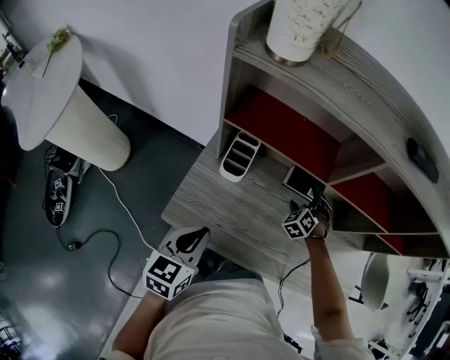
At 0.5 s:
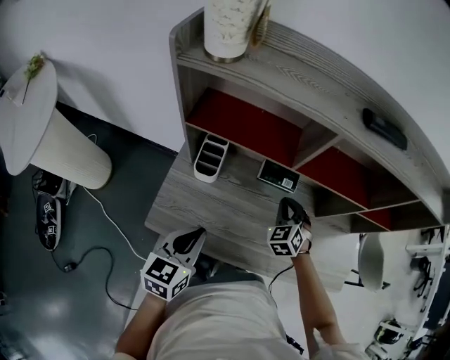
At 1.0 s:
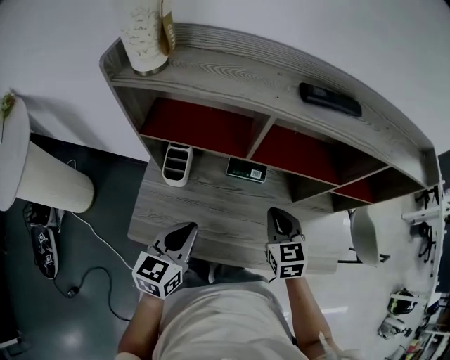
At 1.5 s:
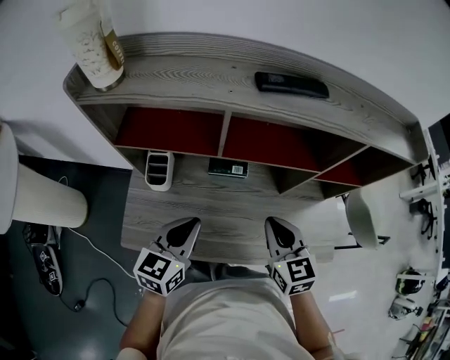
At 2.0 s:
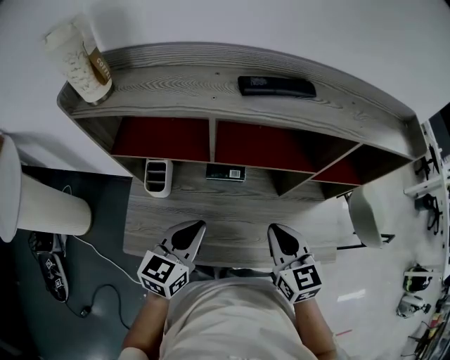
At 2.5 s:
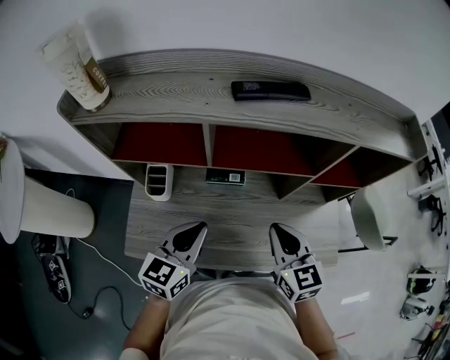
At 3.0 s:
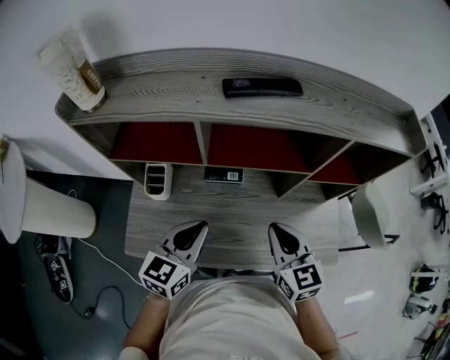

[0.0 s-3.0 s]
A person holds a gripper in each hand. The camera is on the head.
0.0 to 1.5 s: The left gripper is displaced to the right, forward and upward by approximately 20 cm, while the right gripper goes approximately 30 cm upward, backward and to the right, twists roughly 50 degrees clockwise, seen from behind, and closes.
1.5 to 3.0 s: The left gripper heads to the right, covering approximately 5 cm.

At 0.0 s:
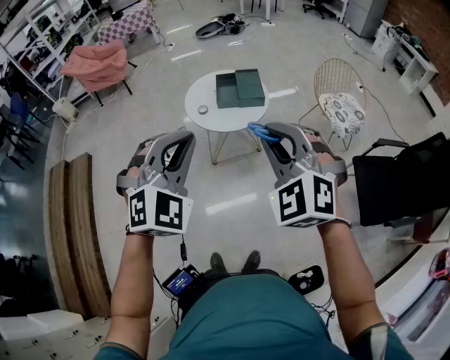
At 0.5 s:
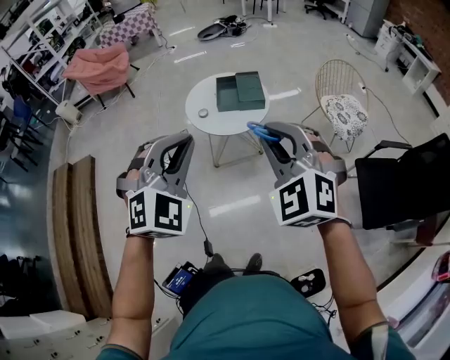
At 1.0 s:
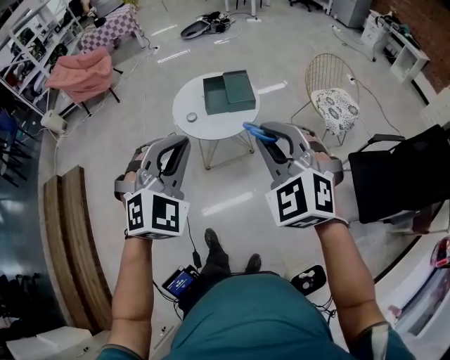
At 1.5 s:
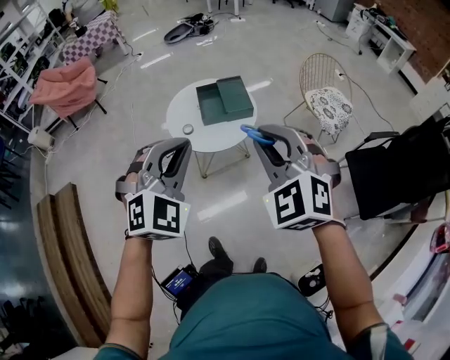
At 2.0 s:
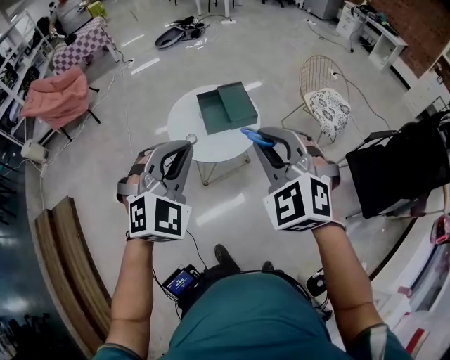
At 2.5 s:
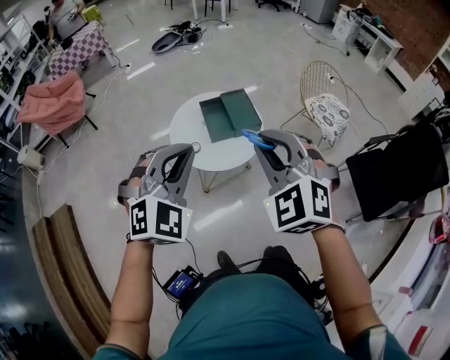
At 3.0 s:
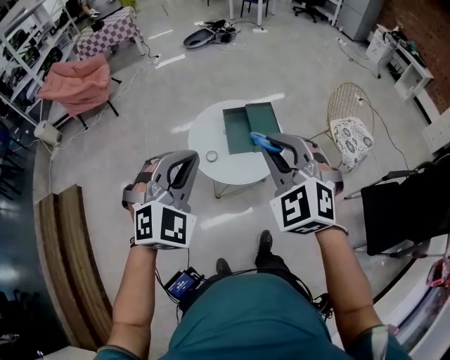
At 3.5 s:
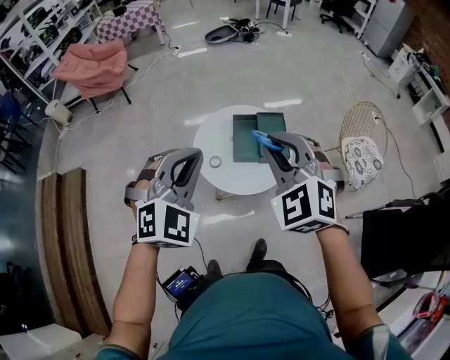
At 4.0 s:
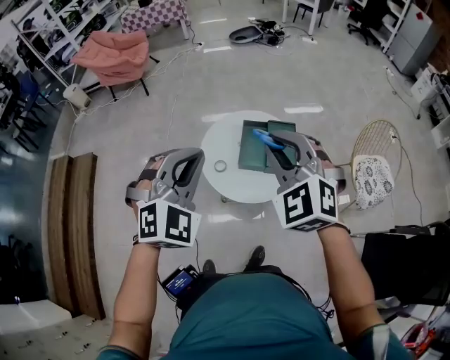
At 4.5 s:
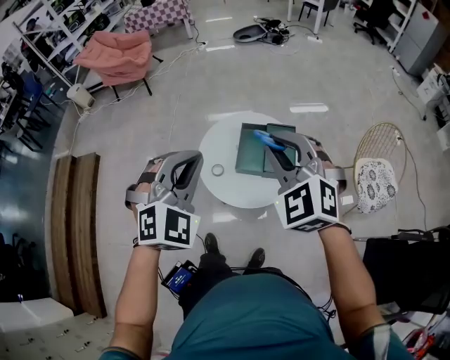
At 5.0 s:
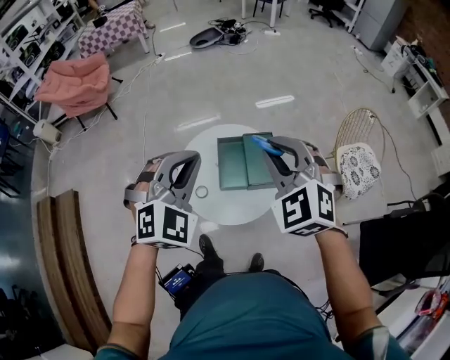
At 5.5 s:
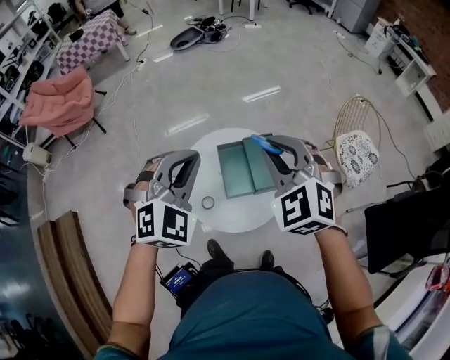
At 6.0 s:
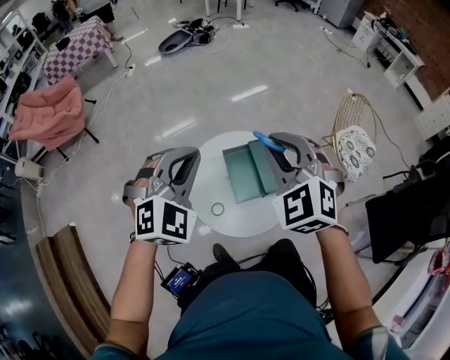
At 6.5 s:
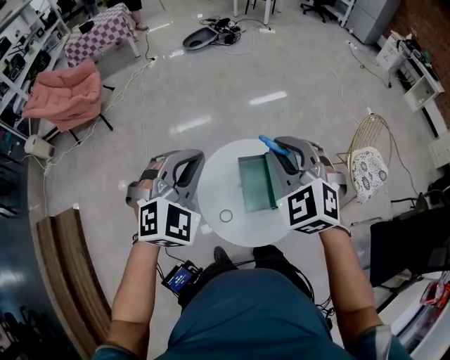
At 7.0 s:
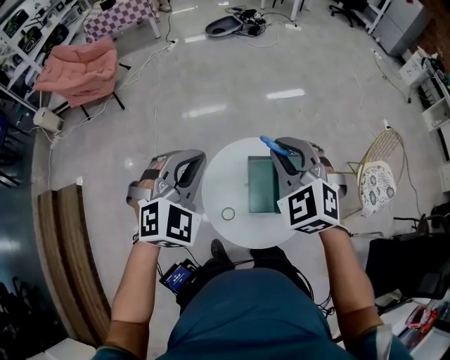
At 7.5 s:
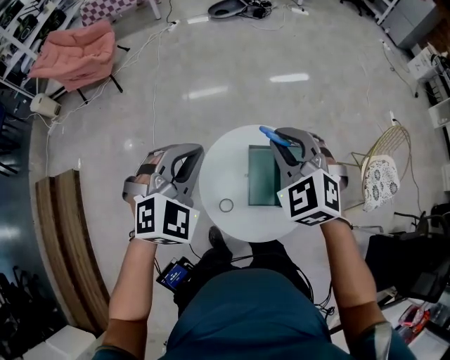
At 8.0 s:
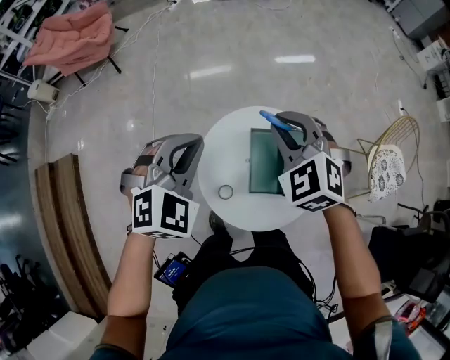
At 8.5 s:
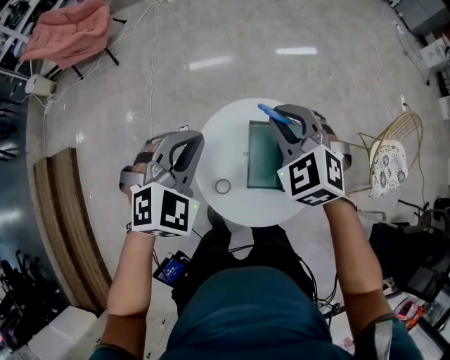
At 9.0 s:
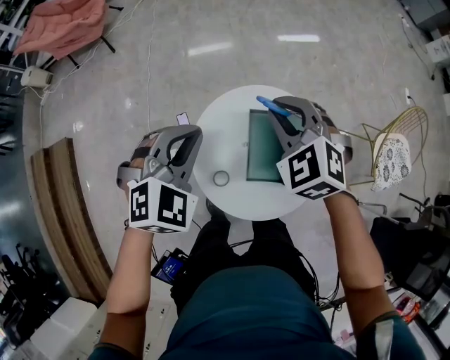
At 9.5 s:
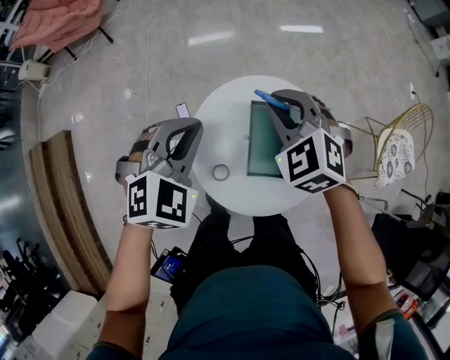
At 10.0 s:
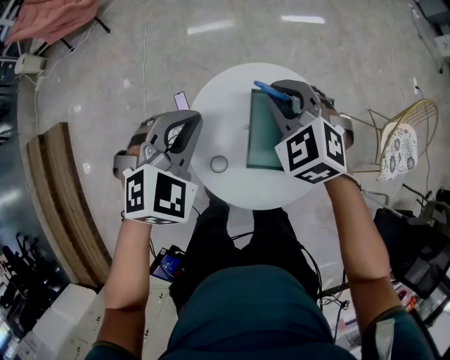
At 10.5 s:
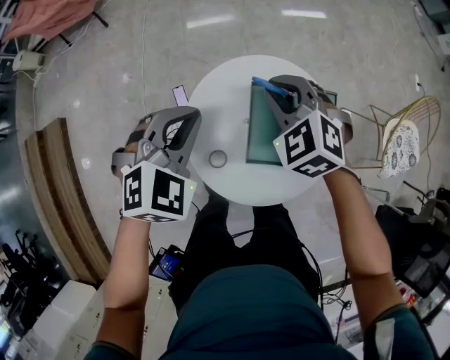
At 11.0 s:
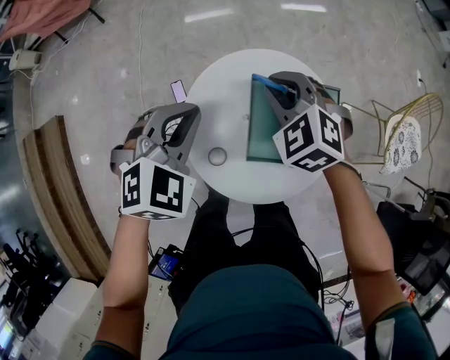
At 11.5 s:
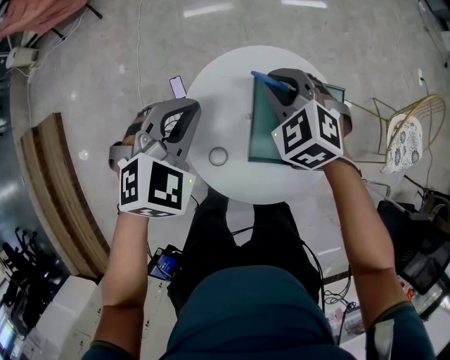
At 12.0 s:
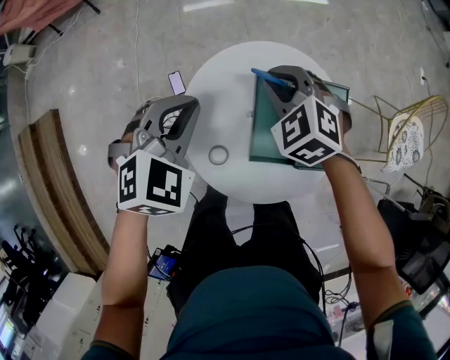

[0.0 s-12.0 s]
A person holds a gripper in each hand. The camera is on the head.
0.0 to 2.0 s: The two grippers go approximately 35 cm forward and to the left.
2.0 to 4.0 s: Both grippers travel together forward, roughly 35 cm. The right gripper turns by some 20 degrees. The left gripper rotates about 20 degrees.
4.0 to 6.0 s: The right gripper moves some 30 cm, and turns by some 20 degrees, while the left gripper moves approximately 35 cm, and turns by approximately 20 degrees.
6.0 to 8.0 s: The right gripper moves forward and downward, roughly 30 cm, and changes its angle by roughly 20 degrees. The left gripper goes roughly 20 cm downward and forward, and rotates approximately 20 degrees.
8.0 to 10.0 s: The grippers both shift downward by roughly 20 cm.
10.0 to 12.0 s: Both grippers travel together downward, about 10 cm.

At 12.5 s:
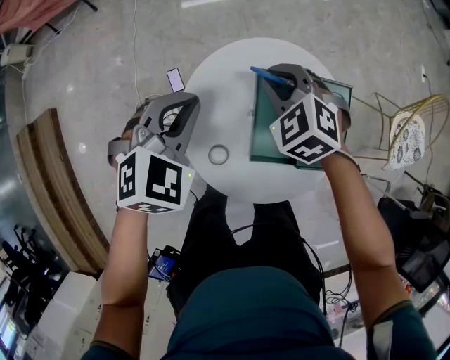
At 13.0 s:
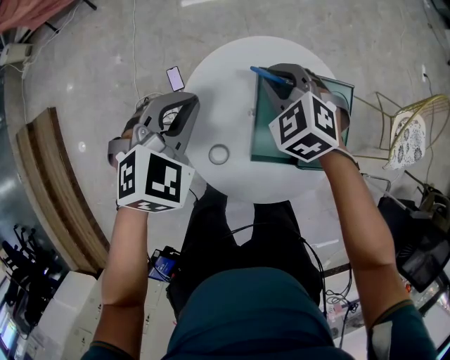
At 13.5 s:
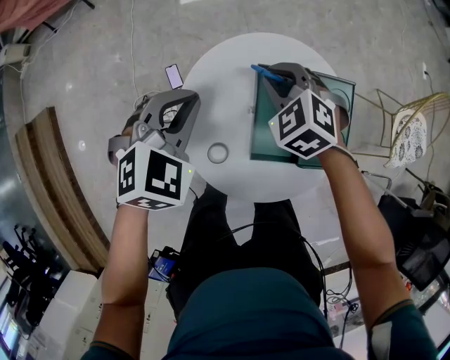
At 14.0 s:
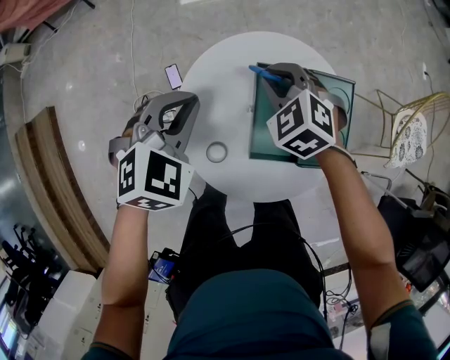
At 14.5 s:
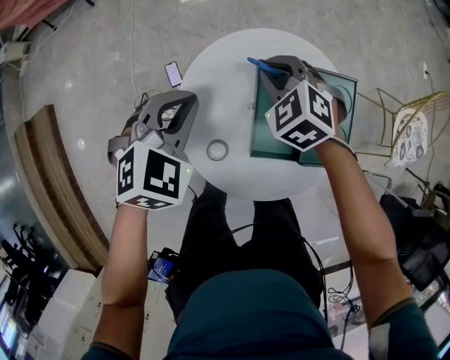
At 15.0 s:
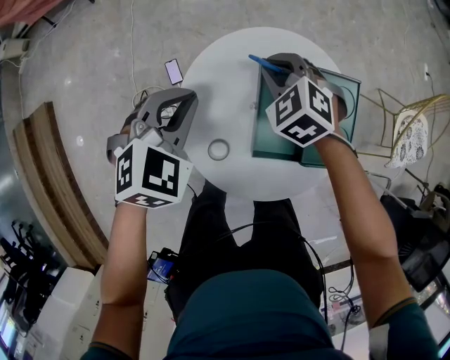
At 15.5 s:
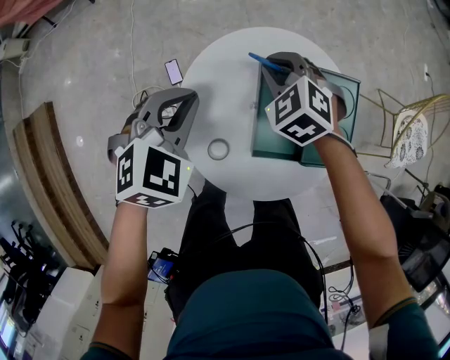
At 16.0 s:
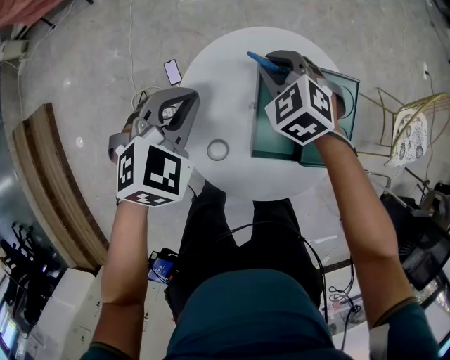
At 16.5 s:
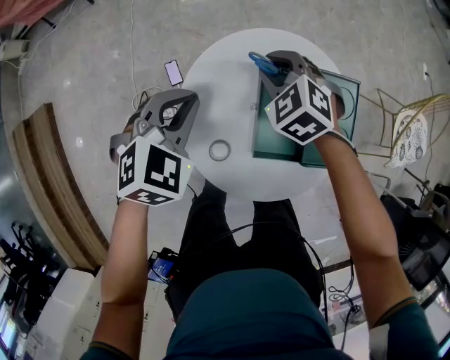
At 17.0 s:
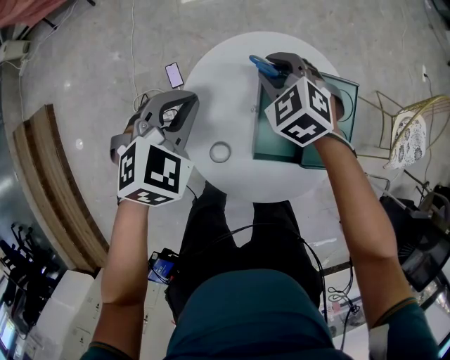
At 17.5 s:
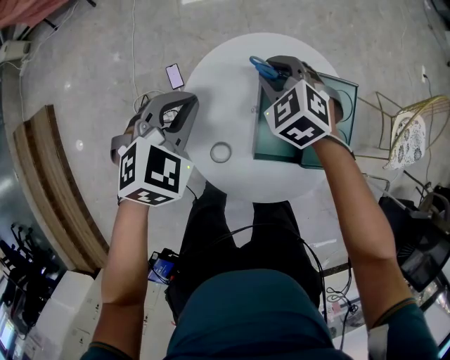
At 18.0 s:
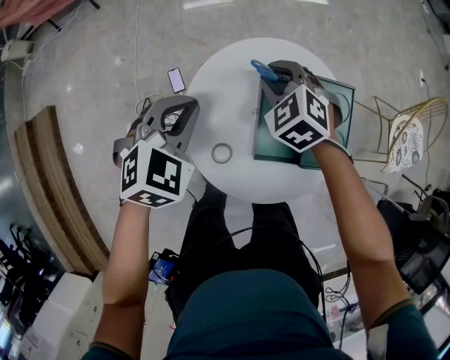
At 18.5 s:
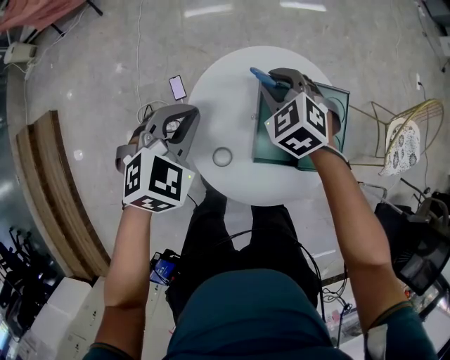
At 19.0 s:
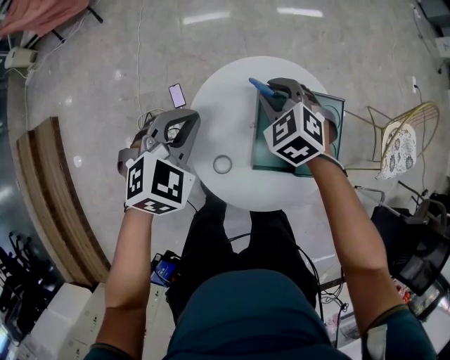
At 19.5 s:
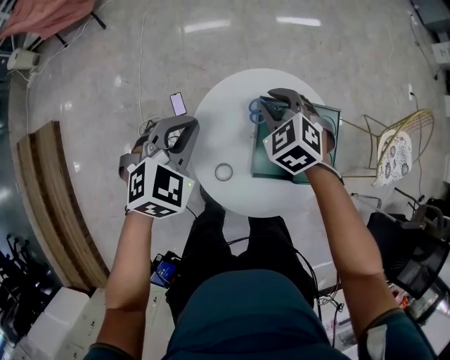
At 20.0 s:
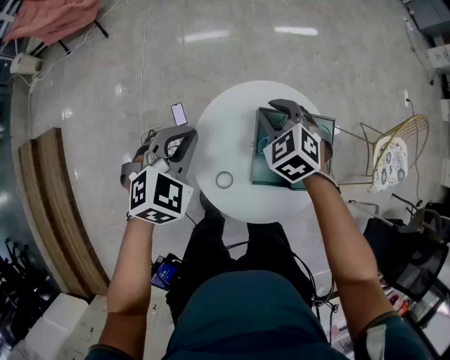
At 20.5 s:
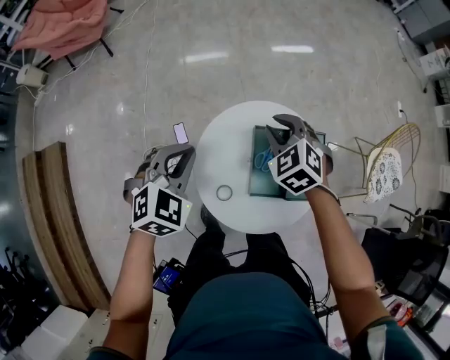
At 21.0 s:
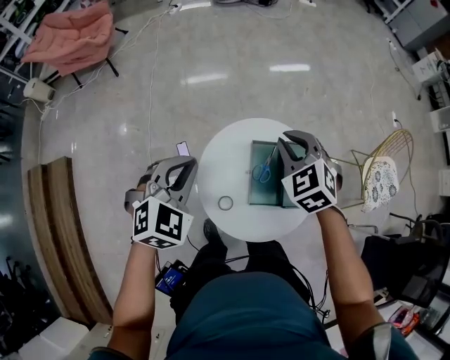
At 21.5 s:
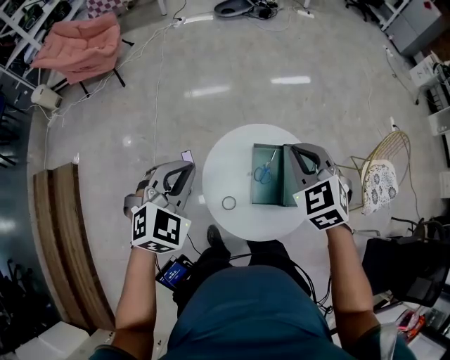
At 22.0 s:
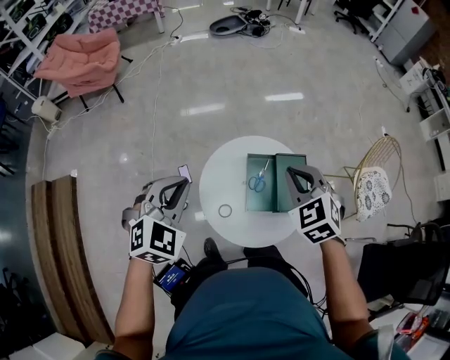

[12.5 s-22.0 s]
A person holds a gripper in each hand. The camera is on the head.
12.5 to 14.5 s: The right gripper goes some 5 cm downward.
14.5 to 18.0 s: There are only small adjustments of the grippers.
18.0 to 20.0 s: Both grippers travel together upward, about 10 cm.
20.0 to 22.0 s: The two grippers go approximately 35 cm upward and backward.

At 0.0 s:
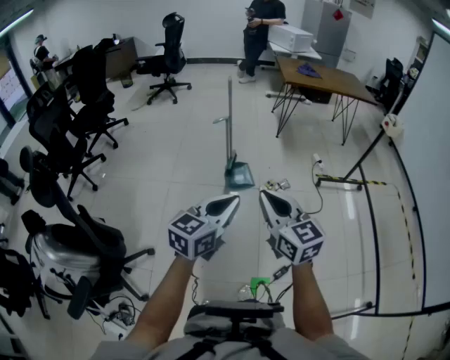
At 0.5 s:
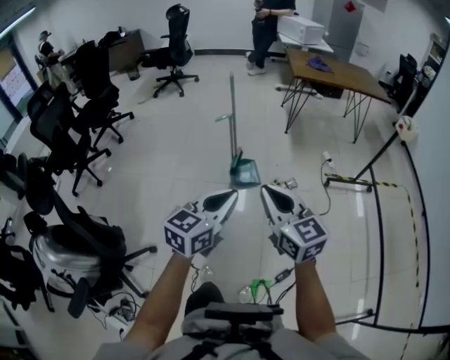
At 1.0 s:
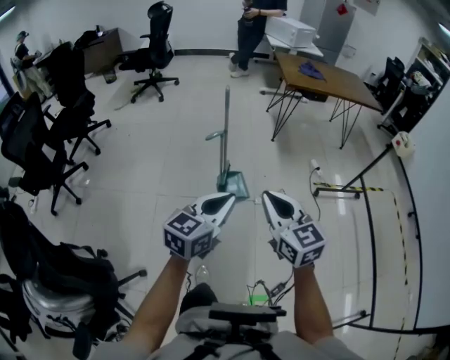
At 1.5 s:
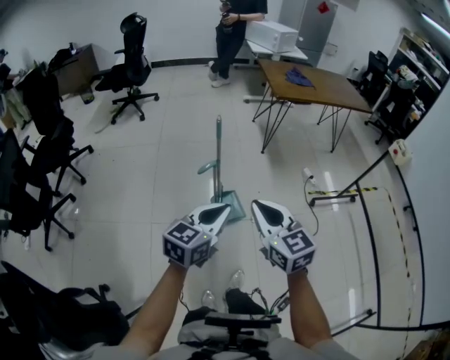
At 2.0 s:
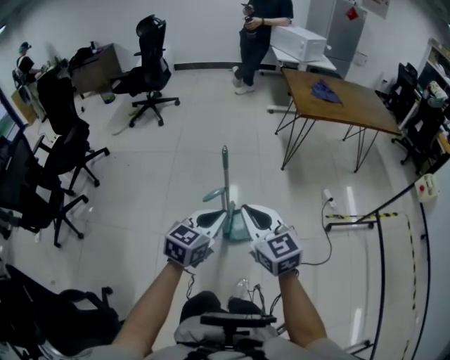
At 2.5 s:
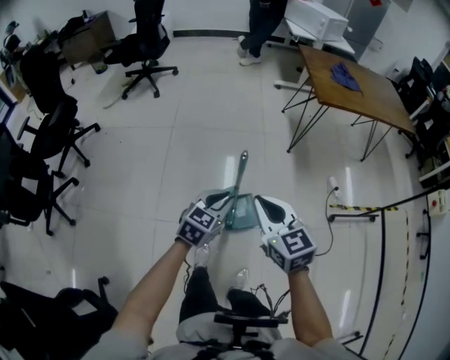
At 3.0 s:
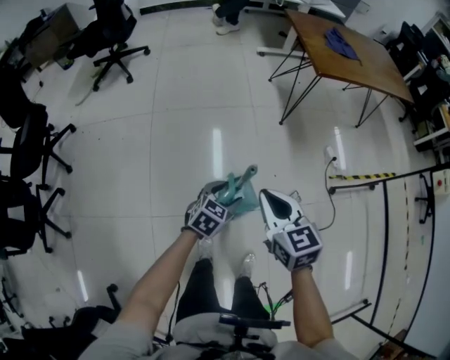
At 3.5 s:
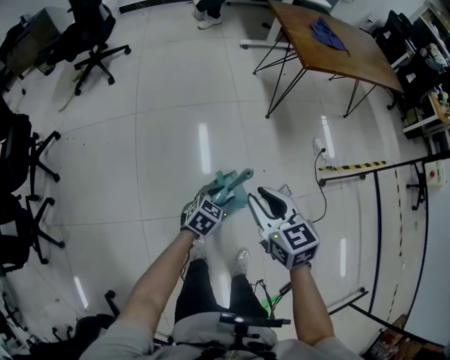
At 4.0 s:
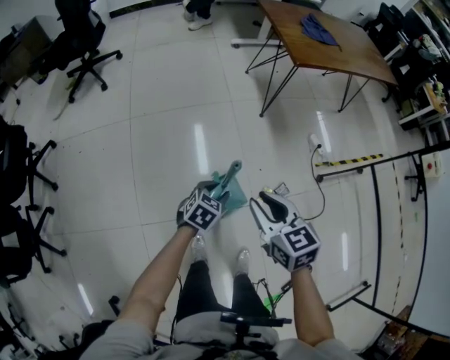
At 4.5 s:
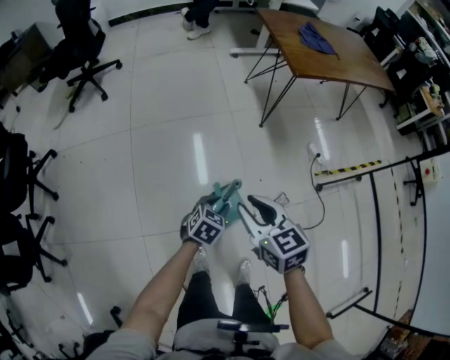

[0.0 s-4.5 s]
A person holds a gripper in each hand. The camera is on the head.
0.0 to 2.0 s: Both grippers are carried forward, roughly 50 cm.
2.0 to 4.5 s: The left gripper shifts about 30 cm downward and forward, turns by roughly 30 degrees, and opens. The right gripper heads forward and downward, covering about 20 cm, turns by about 30 degrees, and opens up.
